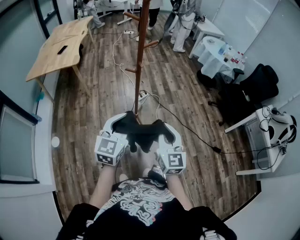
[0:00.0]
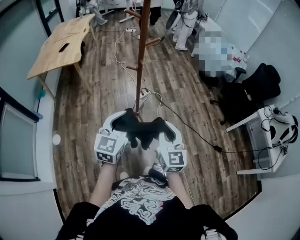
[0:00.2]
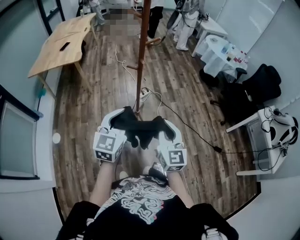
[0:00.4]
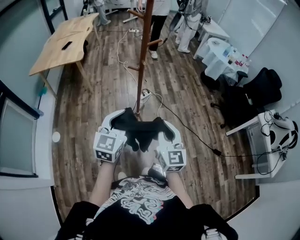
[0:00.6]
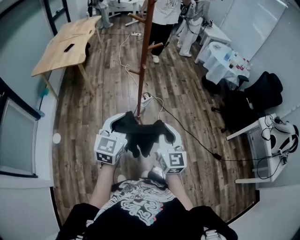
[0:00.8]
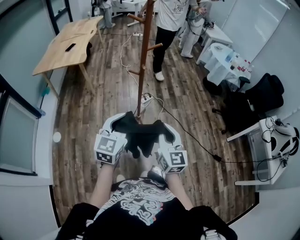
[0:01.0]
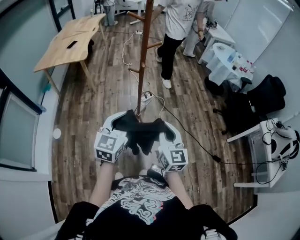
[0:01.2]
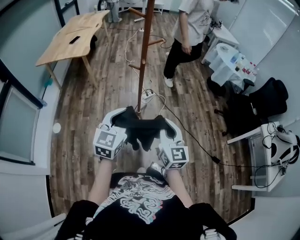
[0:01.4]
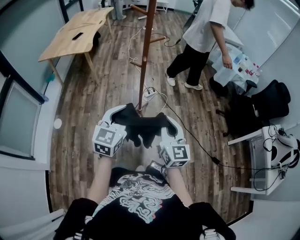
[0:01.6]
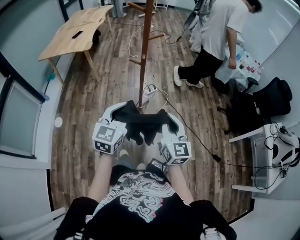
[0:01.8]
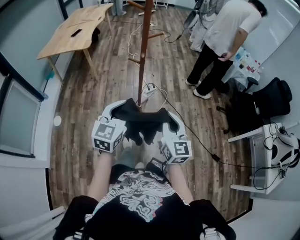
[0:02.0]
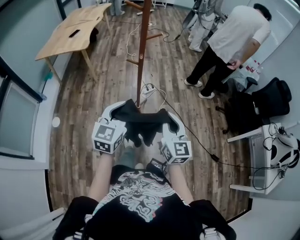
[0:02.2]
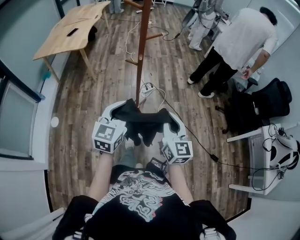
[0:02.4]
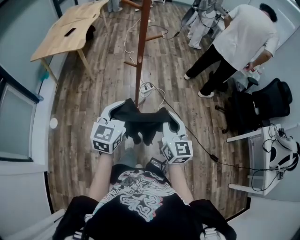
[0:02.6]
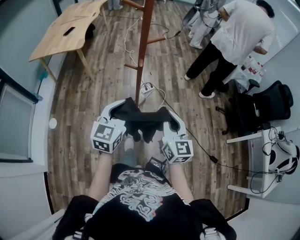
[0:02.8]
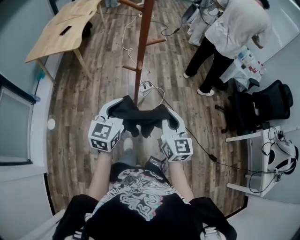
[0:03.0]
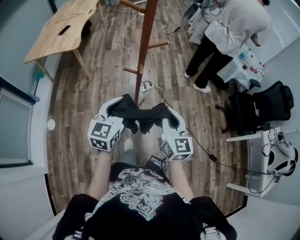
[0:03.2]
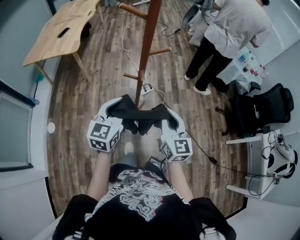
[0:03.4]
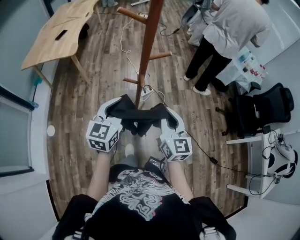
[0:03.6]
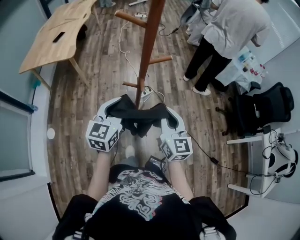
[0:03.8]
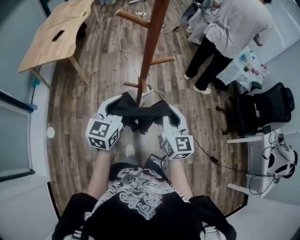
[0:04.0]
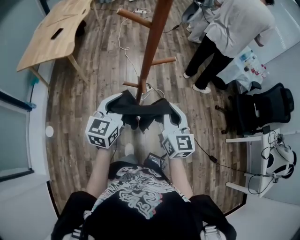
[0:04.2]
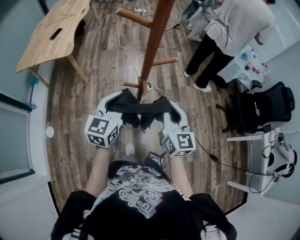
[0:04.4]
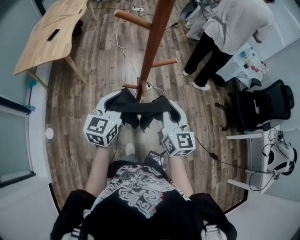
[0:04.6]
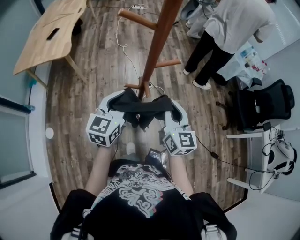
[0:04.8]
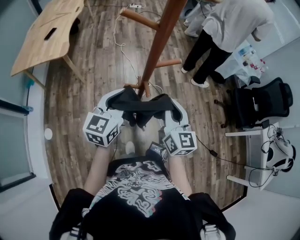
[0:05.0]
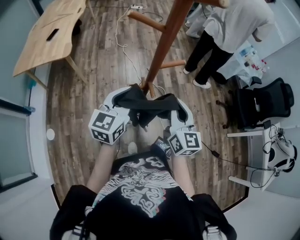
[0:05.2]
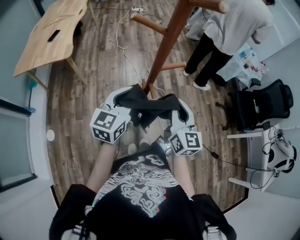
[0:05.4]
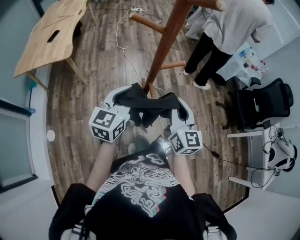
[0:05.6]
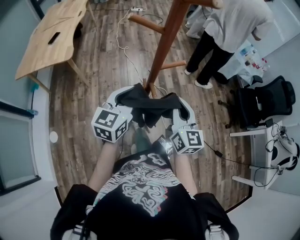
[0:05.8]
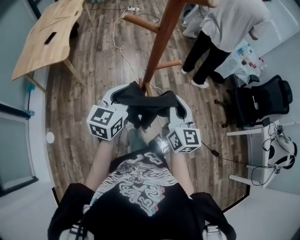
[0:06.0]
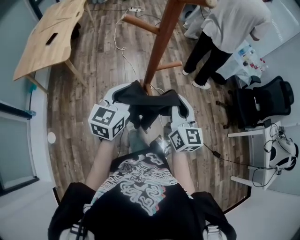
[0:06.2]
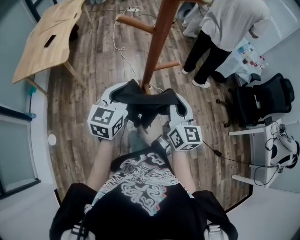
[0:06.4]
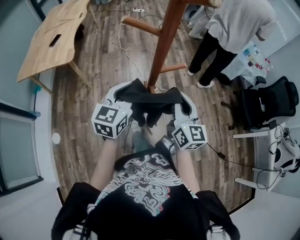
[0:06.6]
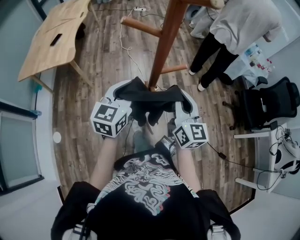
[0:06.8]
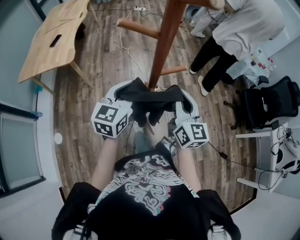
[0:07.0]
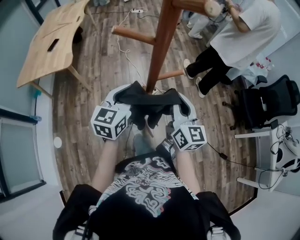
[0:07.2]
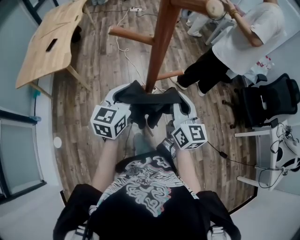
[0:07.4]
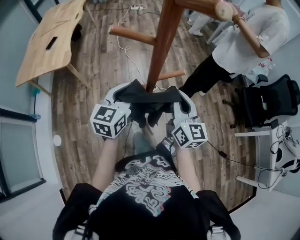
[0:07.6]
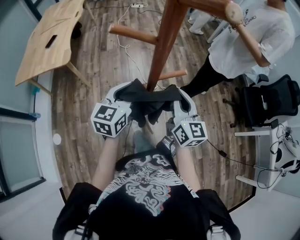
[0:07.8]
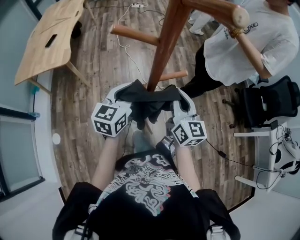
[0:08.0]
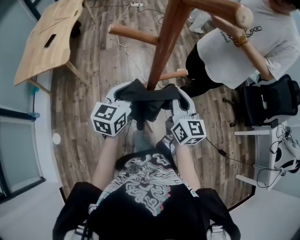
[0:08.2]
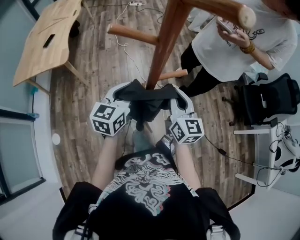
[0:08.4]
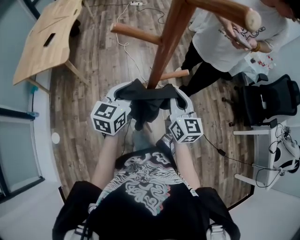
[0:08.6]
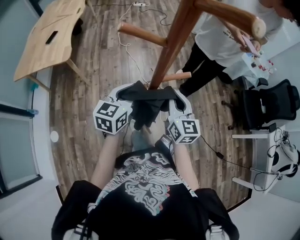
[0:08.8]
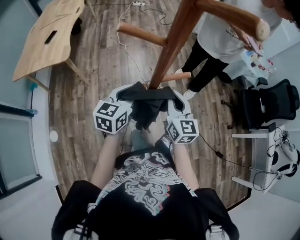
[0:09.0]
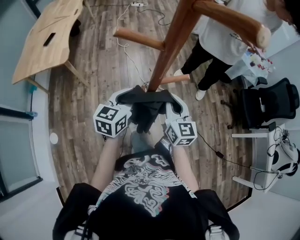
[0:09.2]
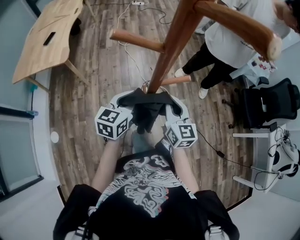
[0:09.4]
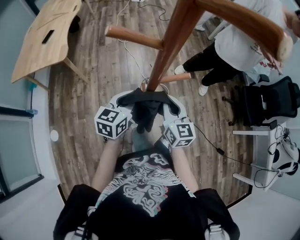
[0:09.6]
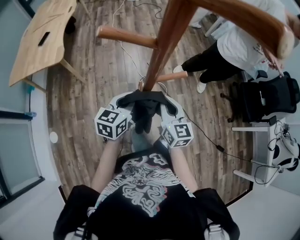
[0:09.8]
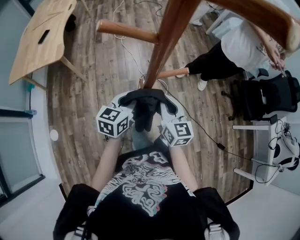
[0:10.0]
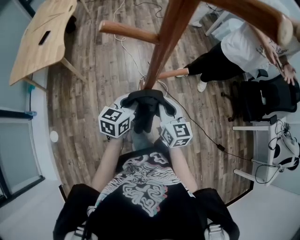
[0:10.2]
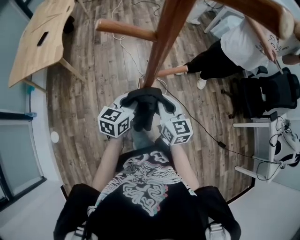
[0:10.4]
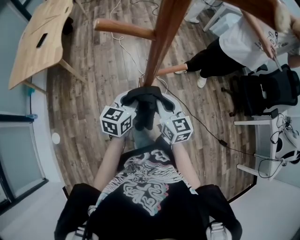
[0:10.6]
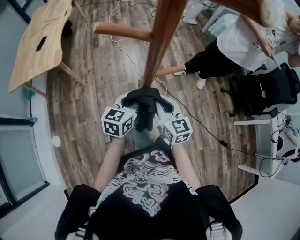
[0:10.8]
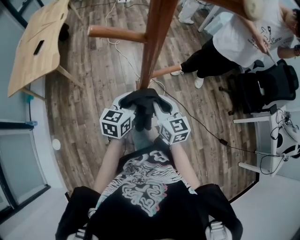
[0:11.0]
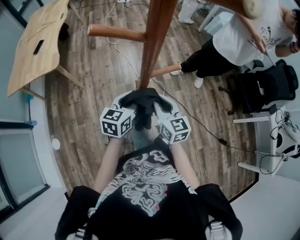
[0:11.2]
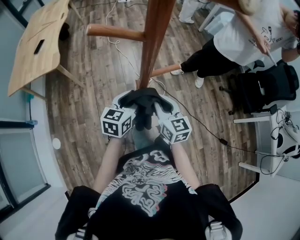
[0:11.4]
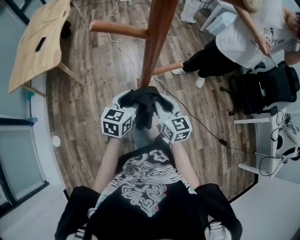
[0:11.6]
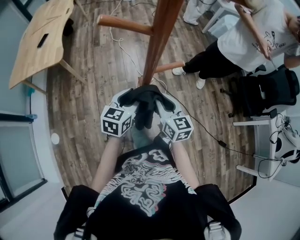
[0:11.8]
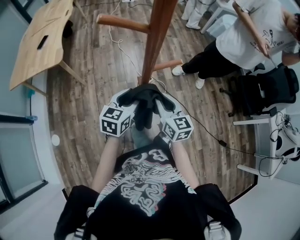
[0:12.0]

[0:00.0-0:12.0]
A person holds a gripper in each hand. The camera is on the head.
0:00.0 to 0:01.6: Both grippers travel together to the right, some 5 cm.
0:01.6 to 0:03.0: Both grippers move forward, some 15 cm.
0:03.0 to 0:04.4: Both grippers travel together forward, roughly 15 cm.
0:04.4 to 0:06.0: The grippers stay close to where they were, moving slightly.
0:06.0 to 0:07.6: Both grippers move forward, about 5 cm.
0:07.6 to 0:09.0: The right gripper shifts roughly 5 cm downward.
0:09.0 to 0:10.4: The two grippers go approximately 5 cm downward.
0:10.4 to 0:12.0: The left gripper opens its fingers.

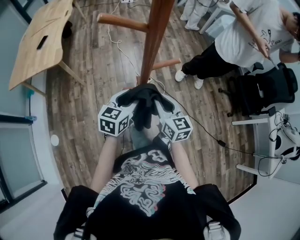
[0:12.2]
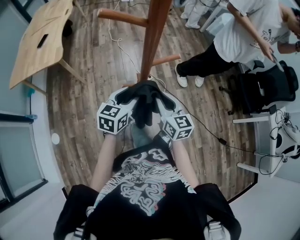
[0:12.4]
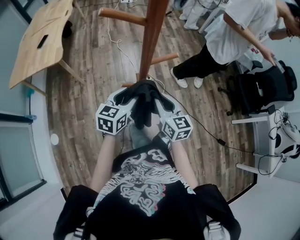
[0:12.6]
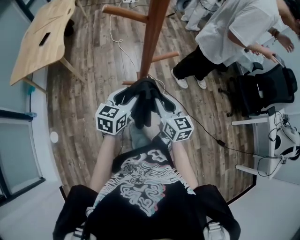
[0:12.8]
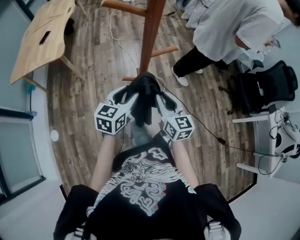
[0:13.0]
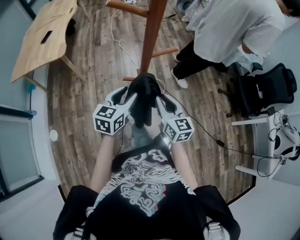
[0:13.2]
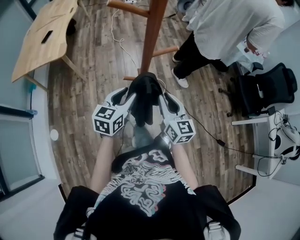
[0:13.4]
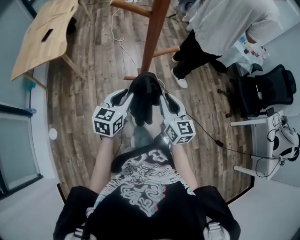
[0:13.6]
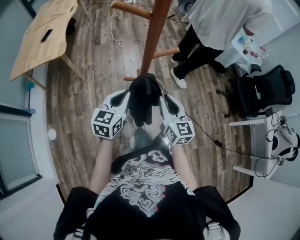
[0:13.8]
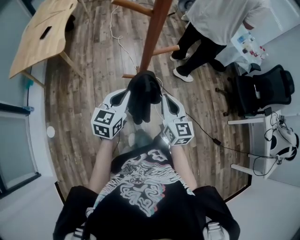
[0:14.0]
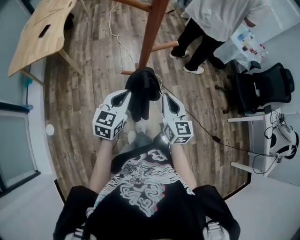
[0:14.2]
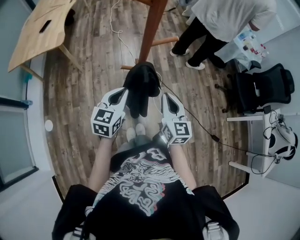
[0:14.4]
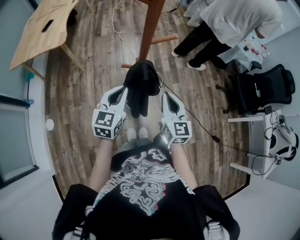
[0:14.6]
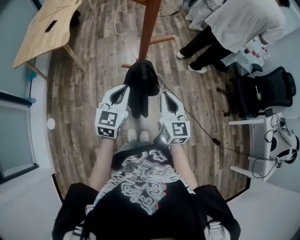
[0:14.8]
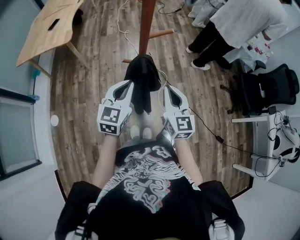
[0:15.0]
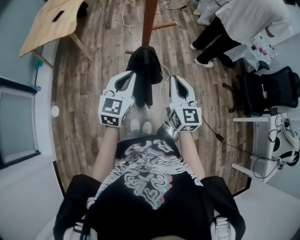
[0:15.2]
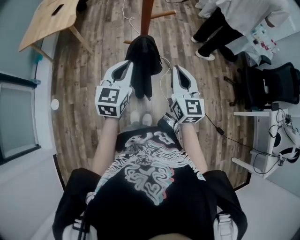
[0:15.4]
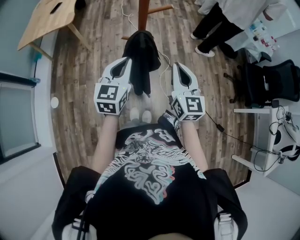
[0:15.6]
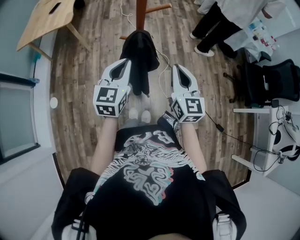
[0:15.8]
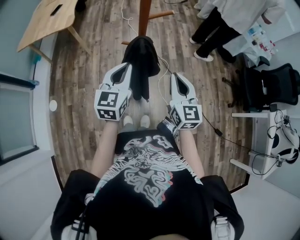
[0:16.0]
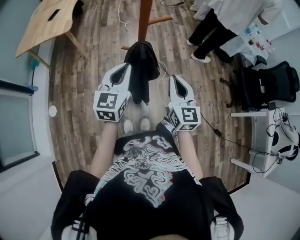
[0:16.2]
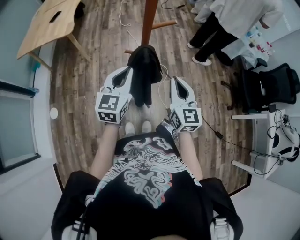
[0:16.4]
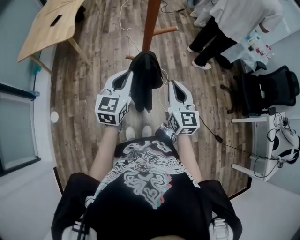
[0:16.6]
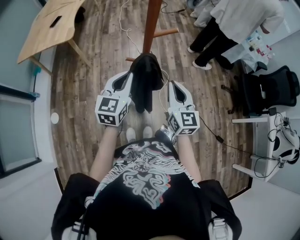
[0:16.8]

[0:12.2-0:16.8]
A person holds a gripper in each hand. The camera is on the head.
0:12.2 to 0:13.8: Both grippers travel together backward, roughly 5 cm. The left gripper closes up.
0:13.8 to 0:15.2: The left gripper goes some 10 cm backward, upward and to the right, while the right gripper heads to the right, upward and backward, covering roughly 10 cm.
0:15.2 to 0:16.8: There are only small adjustments of the grippers.

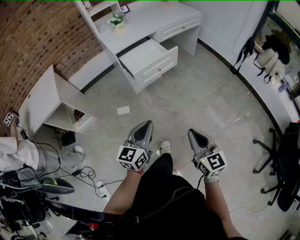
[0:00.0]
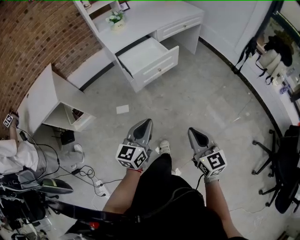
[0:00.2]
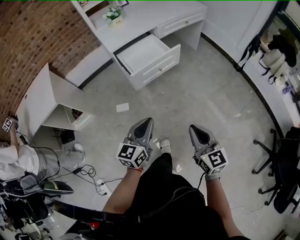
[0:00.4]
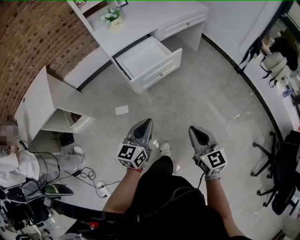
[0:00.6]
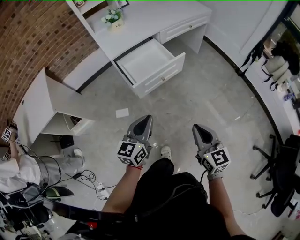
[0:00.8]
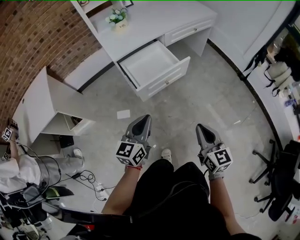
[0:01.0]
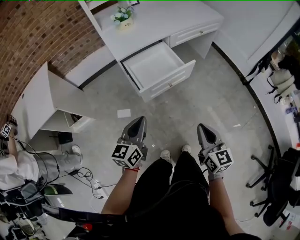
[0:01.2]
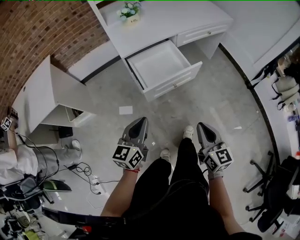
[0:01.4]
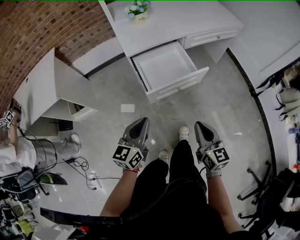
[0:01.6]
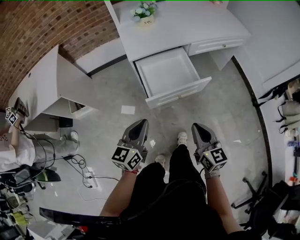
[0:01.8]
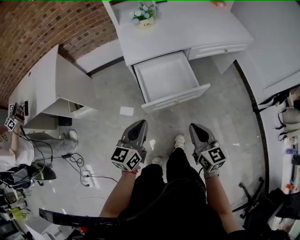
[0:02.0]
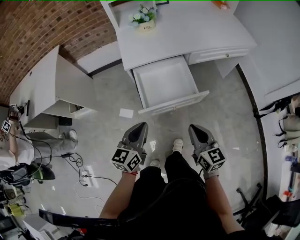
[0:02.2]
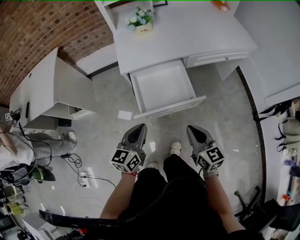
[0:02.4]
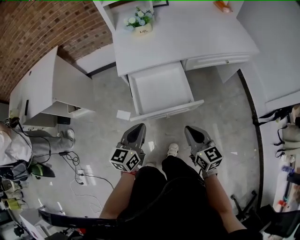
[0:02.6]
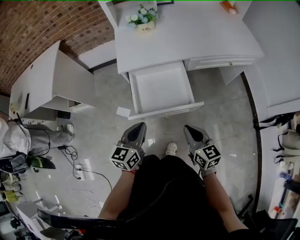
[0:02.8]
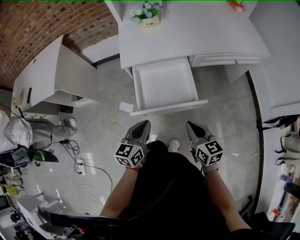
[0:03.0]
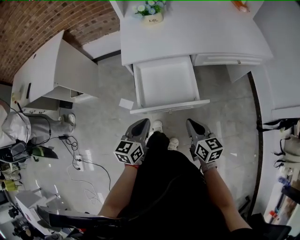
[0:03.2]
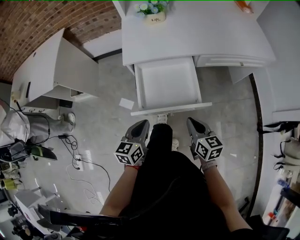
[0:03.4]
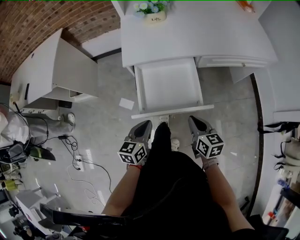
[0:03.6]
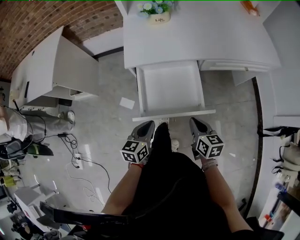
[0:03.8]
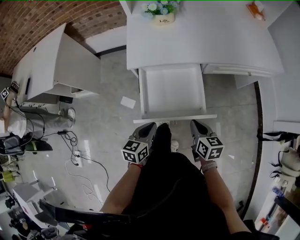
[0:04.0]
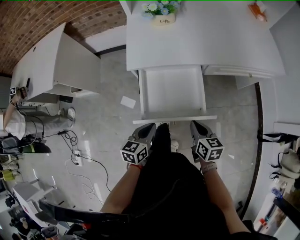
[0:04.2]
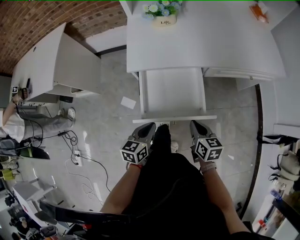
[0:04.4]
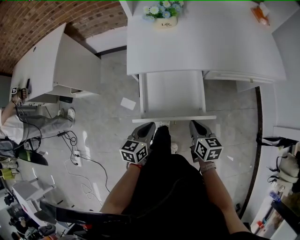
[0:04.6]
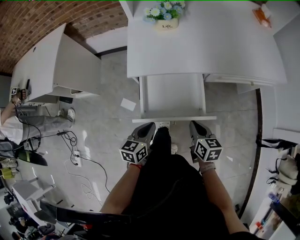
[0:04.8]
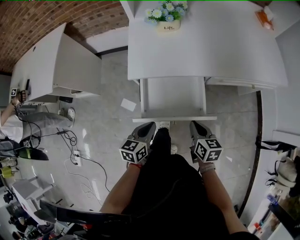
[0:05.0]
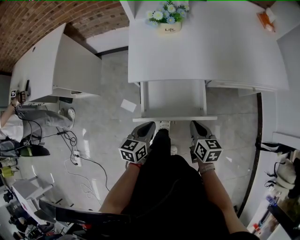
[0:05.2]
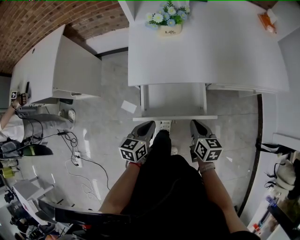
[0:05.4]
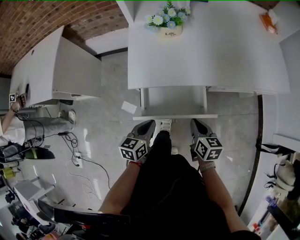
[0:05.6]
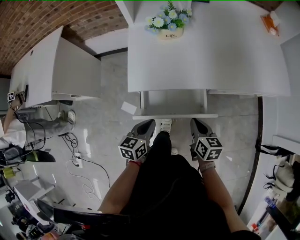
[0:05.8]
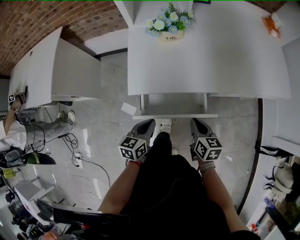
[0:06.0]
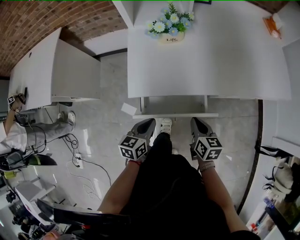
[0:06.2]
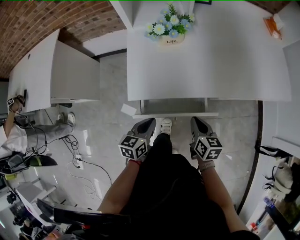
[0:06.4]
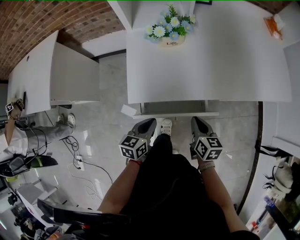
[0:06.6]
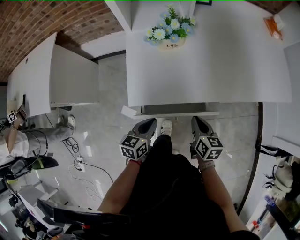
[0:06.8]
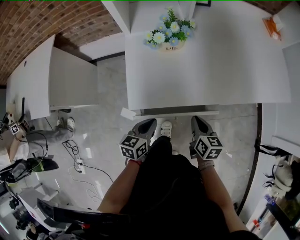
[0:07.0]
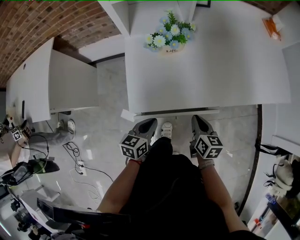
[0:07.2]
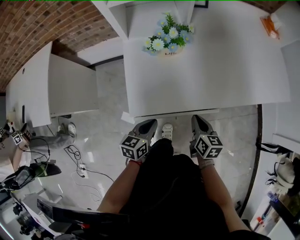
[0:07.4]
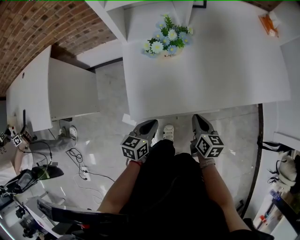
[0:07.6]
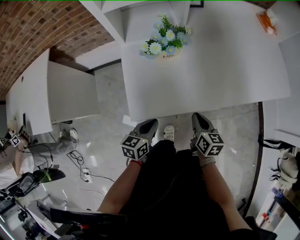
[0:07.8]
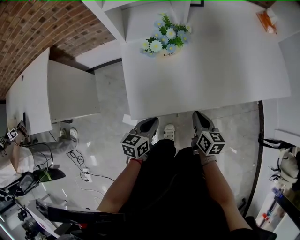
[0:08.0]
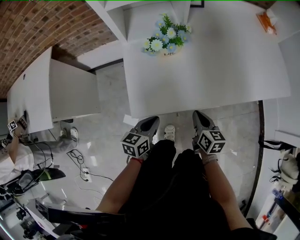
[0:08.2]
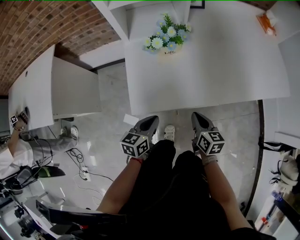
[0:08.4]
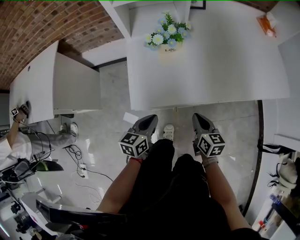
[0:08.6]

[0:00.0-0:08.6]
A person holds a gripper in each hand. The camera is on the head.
0:00.0 to 0:01.4: The grippers both shift forward by approximately 25 cm.
0:01.4 to 0:02.8: The right gripper travels forward by approximately 20 cm, and changes its angle by approximately 30 degrees; the left gripper shifts approximately 20 cm forward and to the right.
0:02.8 to 0:04.4: The left gripper moves downward, approximately 10 cm. Meanwhile the right gripper heads forward and downward, covering approximately 15 cm.
0:04.4 to 0:05.8: Both grippers move forward, approximately 10 cm.
0:05.8 to 0:07.2: Both grippers move forward, some 10 cm.
0:07.2 to 0:08.6: The grippers make only small movements.
